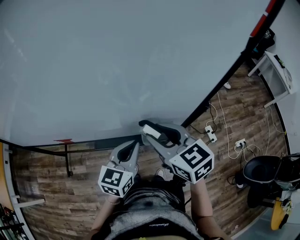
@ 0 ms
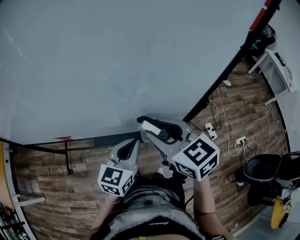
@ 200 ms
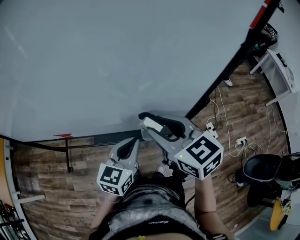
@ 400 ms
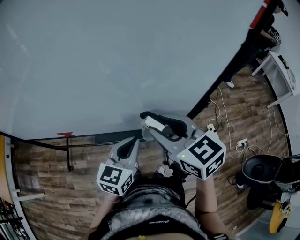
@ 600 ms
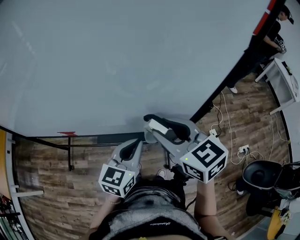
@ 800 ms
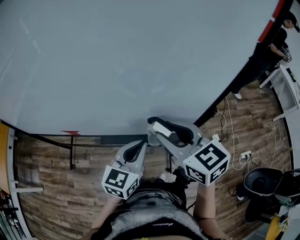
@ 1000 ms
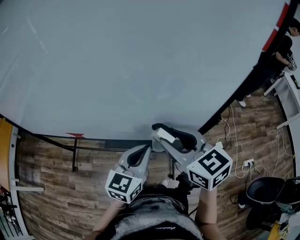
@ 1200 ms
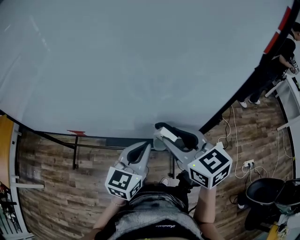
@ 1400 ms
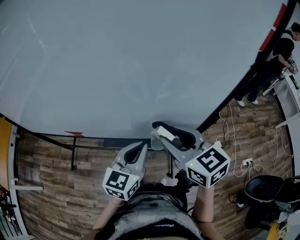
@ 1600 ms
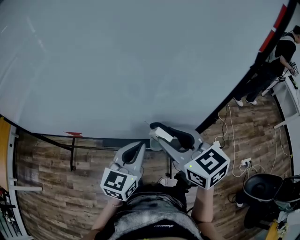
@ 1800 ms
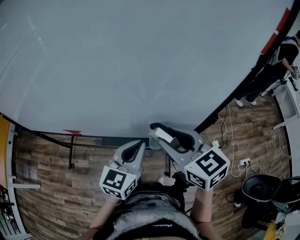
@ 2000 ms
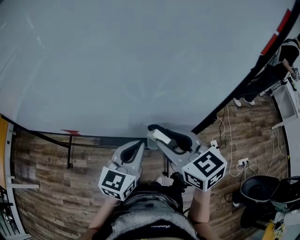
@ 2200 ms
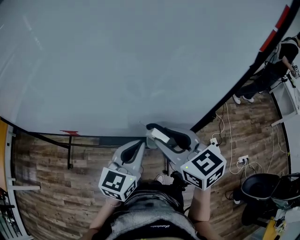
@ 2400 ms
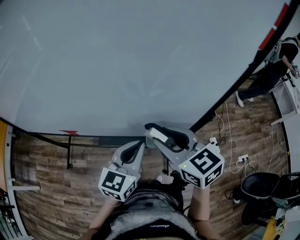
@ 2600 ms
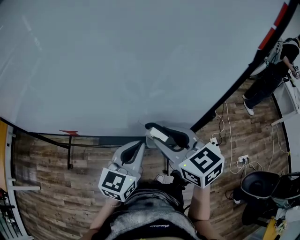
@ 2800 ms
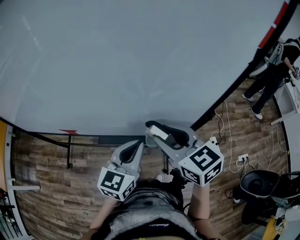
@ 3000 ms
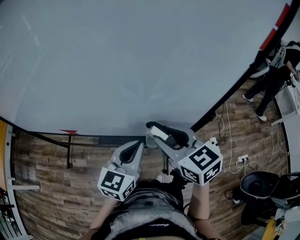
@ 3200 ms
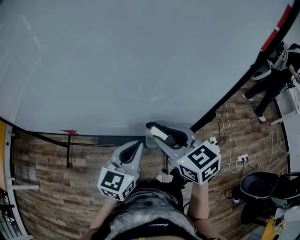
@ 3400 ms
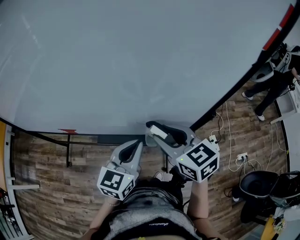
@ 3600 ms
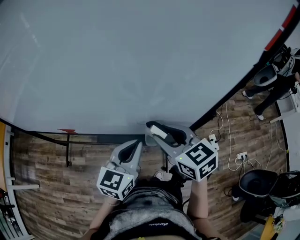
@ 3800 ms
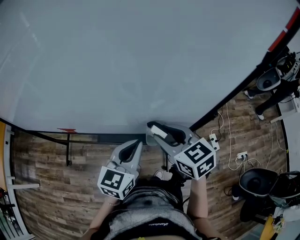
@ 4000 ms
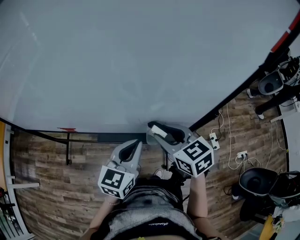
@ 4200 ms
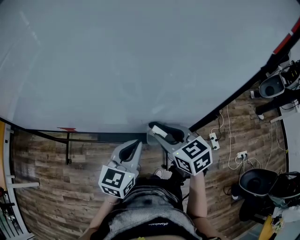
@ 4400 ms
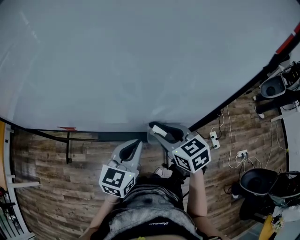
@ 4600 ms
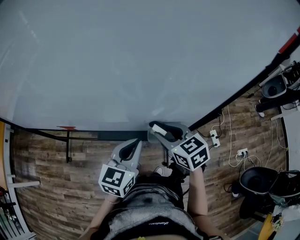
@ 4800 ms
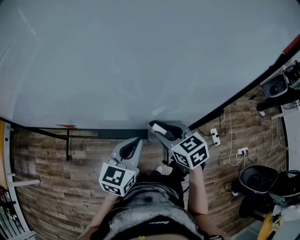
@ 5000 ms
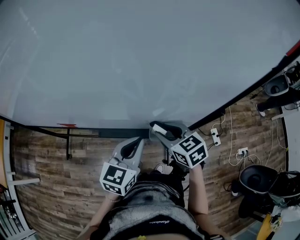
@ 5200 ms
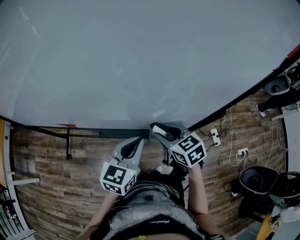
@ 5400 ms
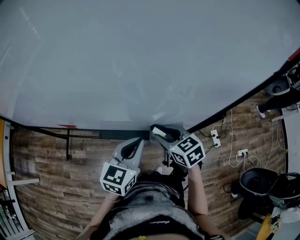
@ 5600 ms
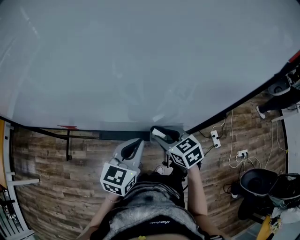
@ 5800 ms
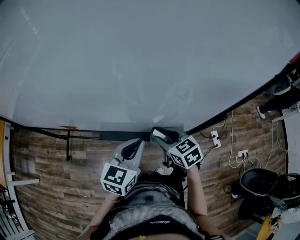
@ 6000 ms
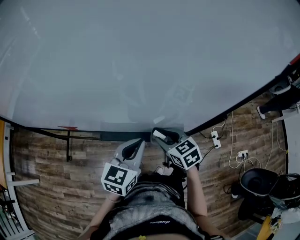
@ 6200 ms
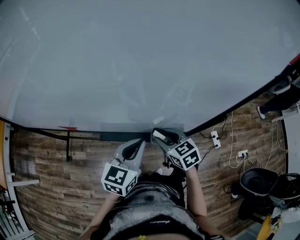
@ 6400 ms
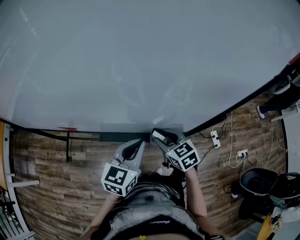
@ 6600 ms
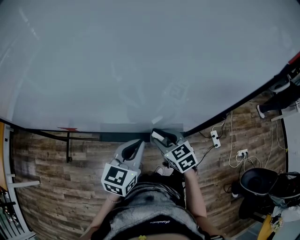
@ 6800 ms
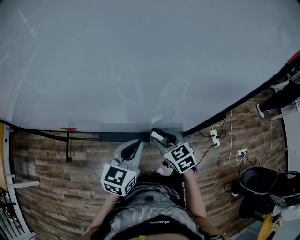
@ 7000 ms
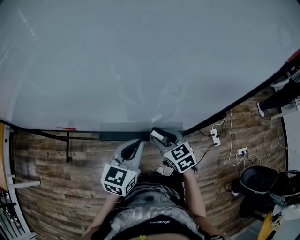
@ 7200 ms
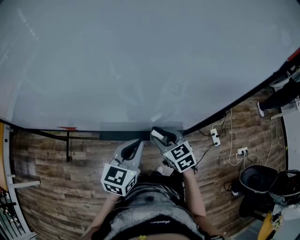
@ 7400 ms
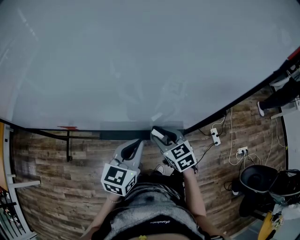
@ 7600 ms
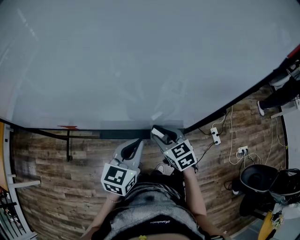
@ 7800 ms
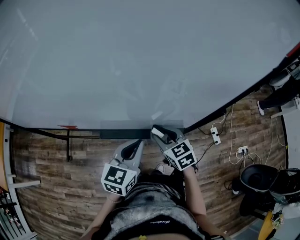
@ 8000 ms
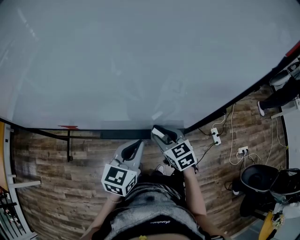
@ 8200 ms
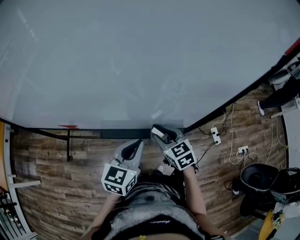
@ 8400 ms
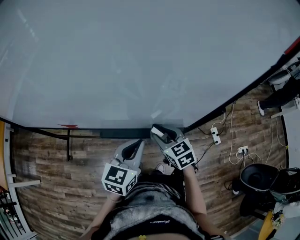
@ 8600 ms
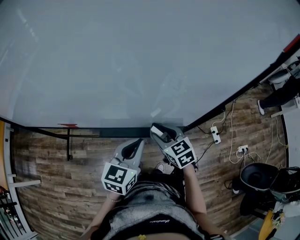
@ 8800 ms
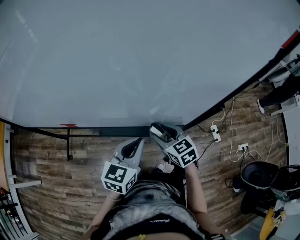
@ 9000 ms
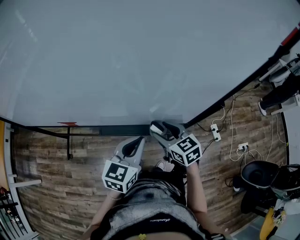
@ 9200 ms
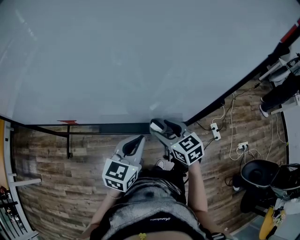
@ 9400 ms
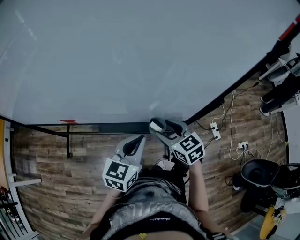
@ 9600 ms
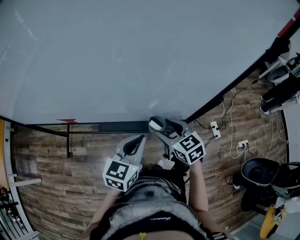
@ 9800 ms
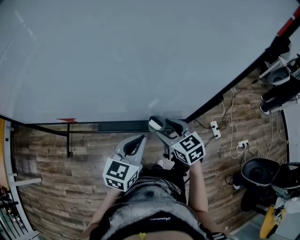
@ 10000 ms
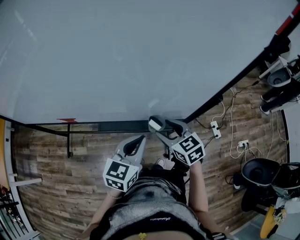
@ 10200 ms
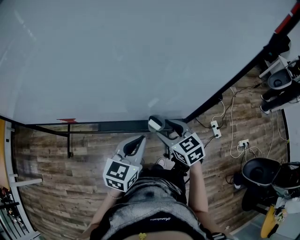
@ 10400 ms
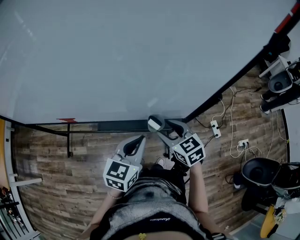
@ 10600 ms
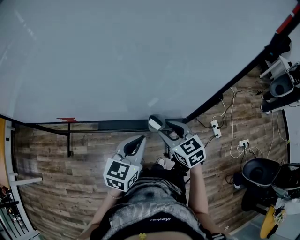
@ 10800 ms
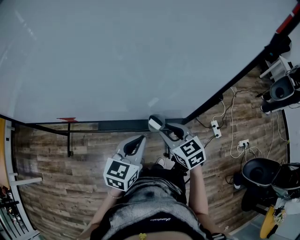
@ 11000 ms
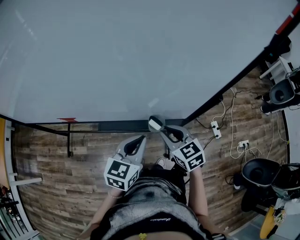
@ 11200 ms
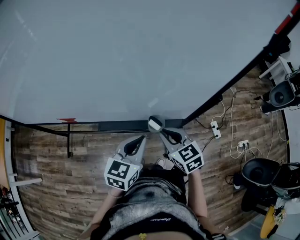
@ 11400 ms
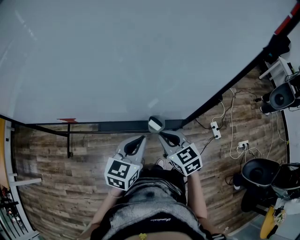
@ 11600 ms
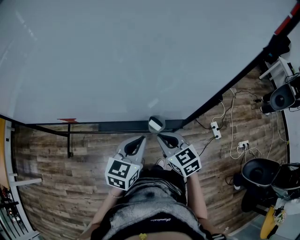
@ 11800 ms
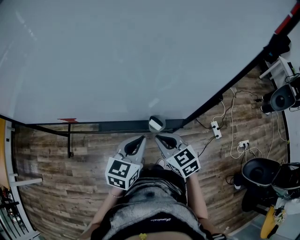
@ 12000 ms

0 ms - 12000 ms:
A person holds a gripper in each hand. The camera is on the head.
0 ms - 3000 ms: There are only small adjustments of the grippers.
3000 ms - 4400 ms: The right gripper is displaced downward by about 10 cm.
4400 ms - 6000 ms: The right gripper moves downward, about 10 cm.
6000 ms - 10400 ms: The grippers move only a little.
10400 ms - 12000 ms: The right gripper closes up.

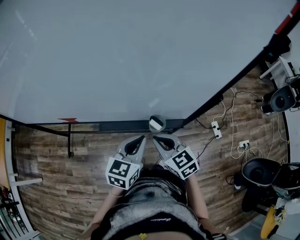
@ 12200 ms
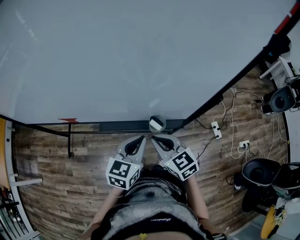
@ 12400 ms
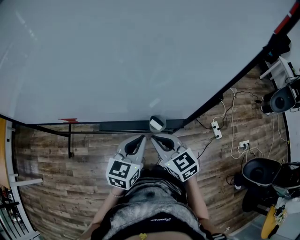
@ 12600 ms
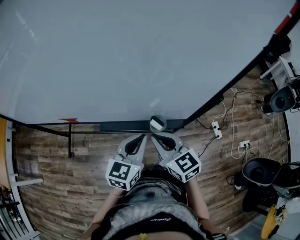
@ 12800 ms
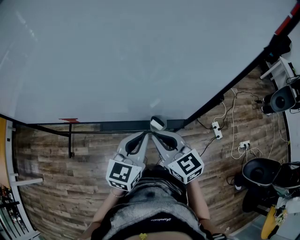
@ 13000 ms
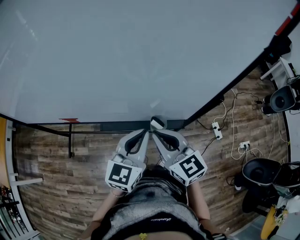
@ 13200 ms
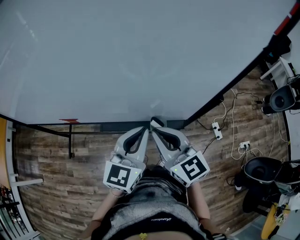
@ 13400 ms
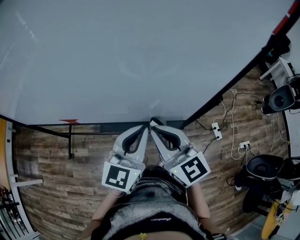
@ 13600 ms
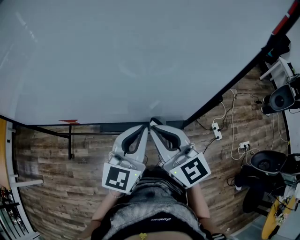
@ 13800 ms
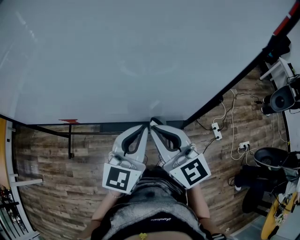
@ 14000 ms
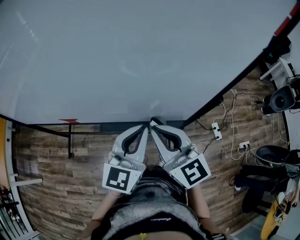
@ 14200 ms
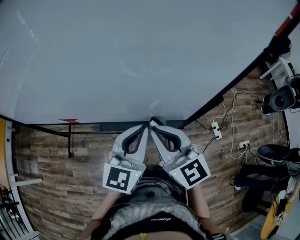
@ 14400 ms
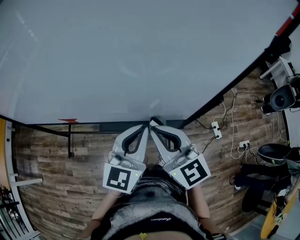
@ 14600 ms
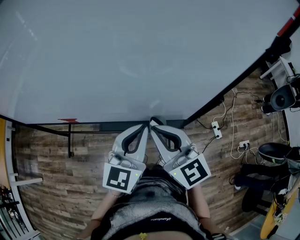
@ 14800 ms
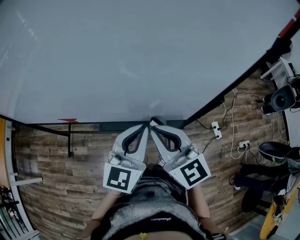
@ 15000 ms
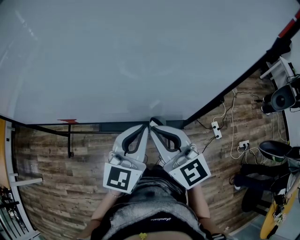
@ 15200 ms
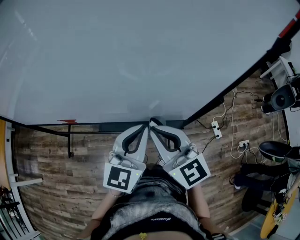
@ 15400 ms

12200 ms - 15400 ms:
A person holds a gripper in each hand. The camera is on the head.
12200 ms - 13800 ms: Both grippers move upward, some 15 cm. The right gripper rotates roughly 30 degrees. The left gripper swivels about 20 degrees.
13800 ms - 15400 ms: There are only small adjustments of the grippers.

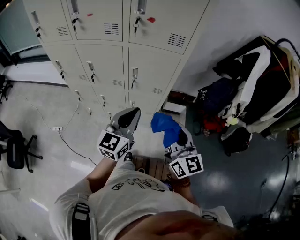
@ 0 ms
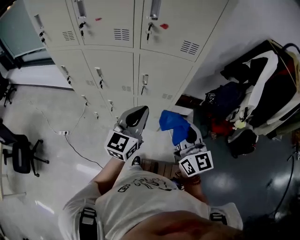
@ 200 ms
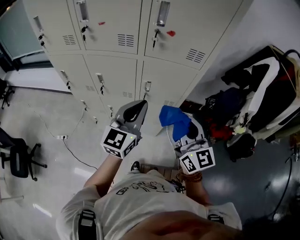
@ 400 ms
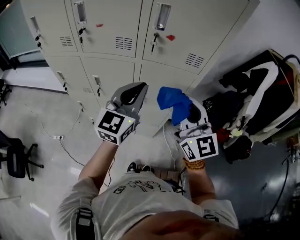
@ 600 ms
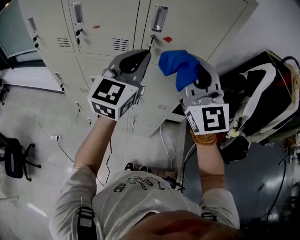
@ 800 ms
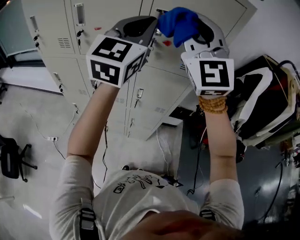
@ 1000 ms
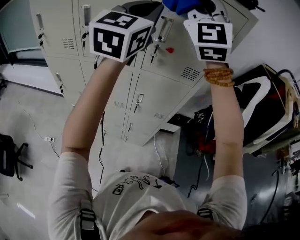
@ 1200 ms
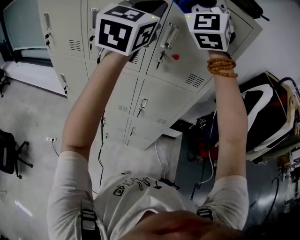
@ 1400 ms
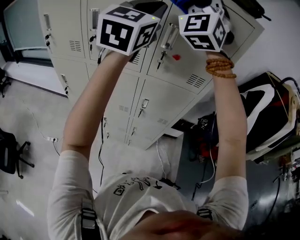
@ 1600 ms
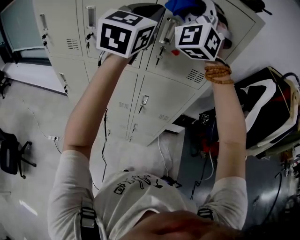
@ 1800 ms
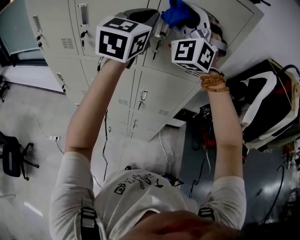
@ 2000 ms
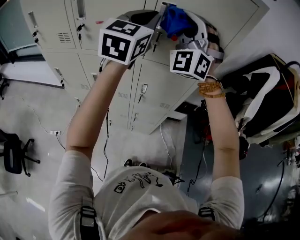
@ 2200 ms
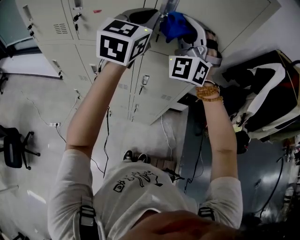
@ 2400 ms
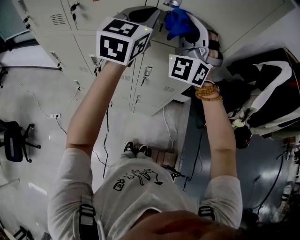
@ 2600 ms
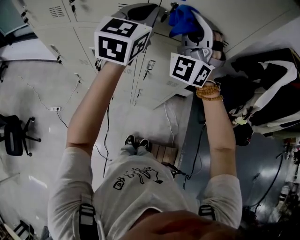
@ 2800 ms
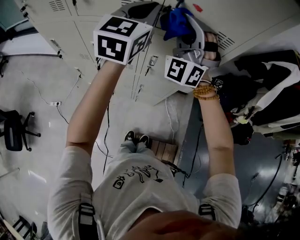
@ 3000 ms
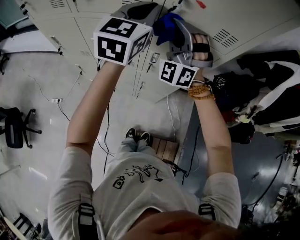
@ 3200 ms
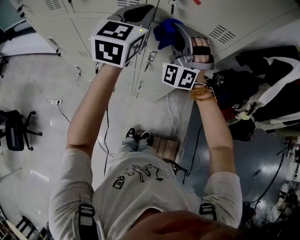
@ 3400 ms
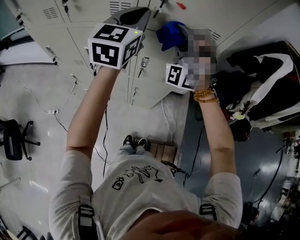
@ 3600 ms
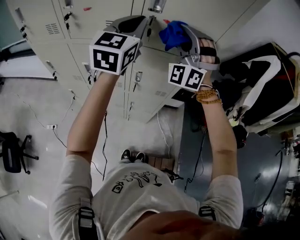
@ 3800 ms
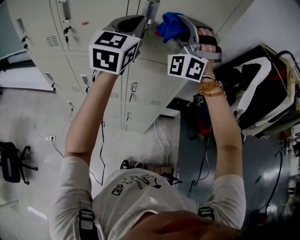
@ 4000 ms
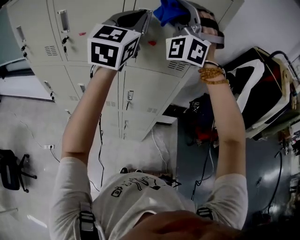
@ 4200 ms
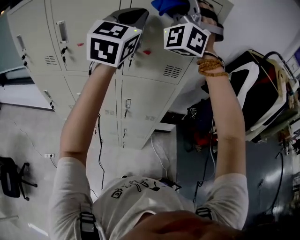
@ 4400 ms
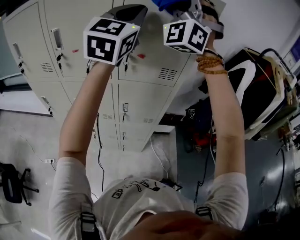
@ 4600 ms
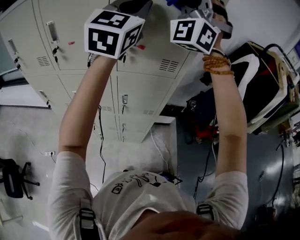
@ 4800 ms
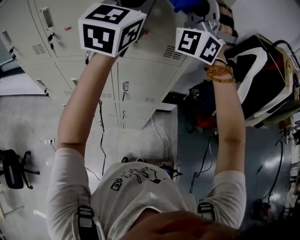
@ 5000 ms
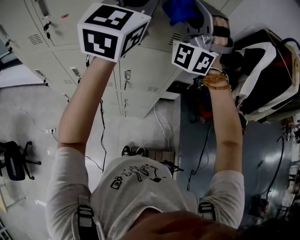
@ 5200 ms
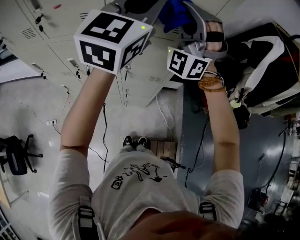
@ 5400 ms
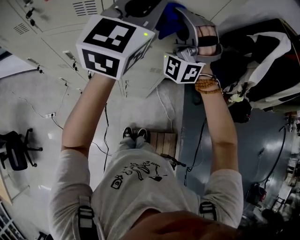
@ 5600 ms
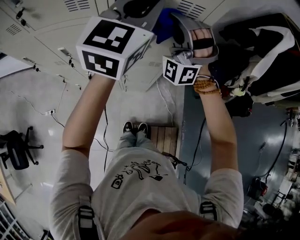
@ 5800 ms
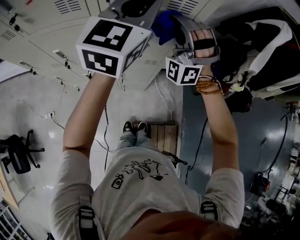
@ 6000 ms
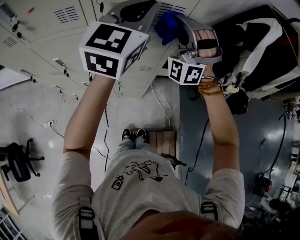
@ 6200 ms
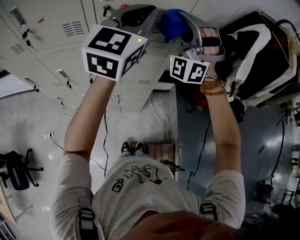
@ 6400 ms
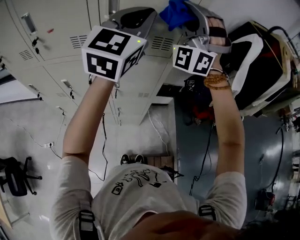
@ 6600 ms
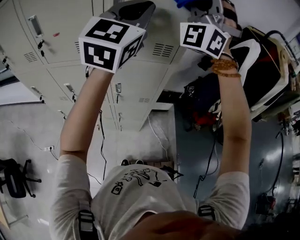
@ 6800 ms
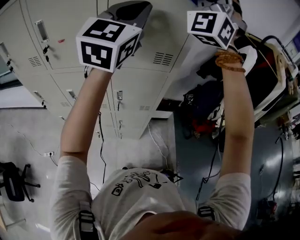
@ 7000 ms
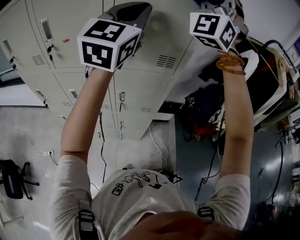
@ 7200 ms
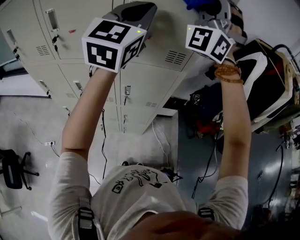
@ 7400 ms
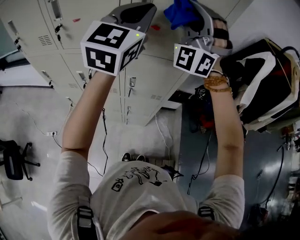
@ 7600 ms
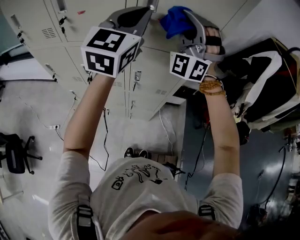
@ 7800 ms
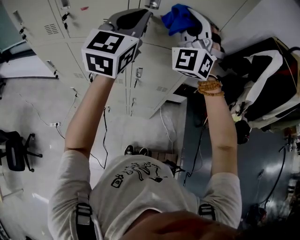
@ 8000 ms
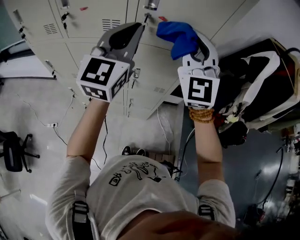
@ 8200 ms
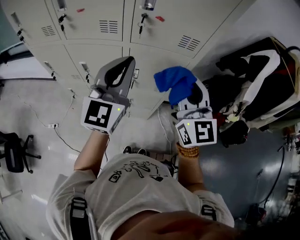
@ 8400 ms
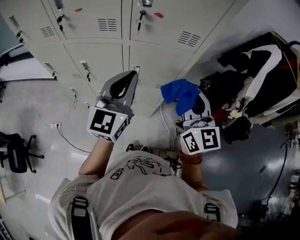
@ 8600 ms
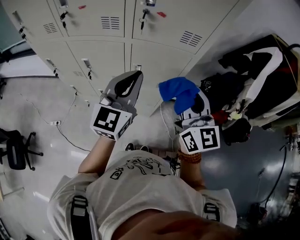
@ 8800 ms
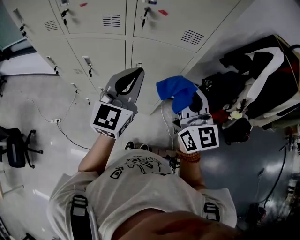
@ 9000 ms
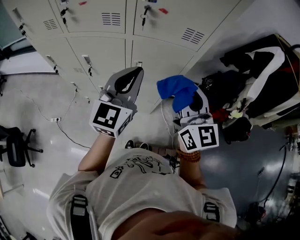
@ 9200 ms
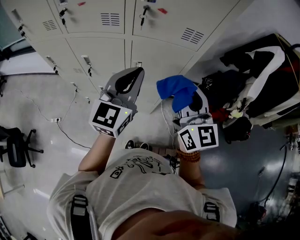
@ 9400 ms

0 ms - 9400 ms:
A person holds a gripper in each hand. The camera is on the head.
0 ms - 1600 ms: The left gripper is displaced upward and forward by about 50 cm, and swivels some 30 degrees. Meanwhile the right gripper moves upward, forward and to the left, about 60 cm, and rotates around the line of its fingers by some 80 degrees, counterclockwise from behind.
1600 ms - 3200 ms: Both grippers move downward, about 30 cm.
3200 ms - 4800 ms: The left gripper shifts about 25 cm upward and to the right, and rotates approximately 20 degrees, while the right gripper travels upward by roughly 35 cm, and turns by about 20 degrees.
4800 ms - 6200 ms: The left gripper heads downward, covering some 20 cm, while the right gripper travels downward by some 35 cm, and swivels some 20 degrees.
6200 ms - 7800 ms: The right gripper moves upward and to the left, about 15 cm. The left gripper travels to the left and upward by roughly 15 cm.
7800 ms - 9400 ms: The left gripper goes some 20 cm downward and backward. Meanwhile the right gripper is displaced backward and downward by about 20 cm, and rotates around the line of its fingers by roughly 80 degrees, clockwise from behind.
